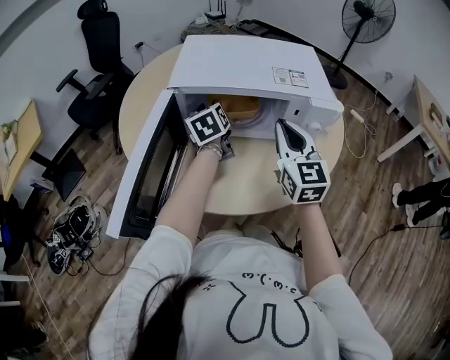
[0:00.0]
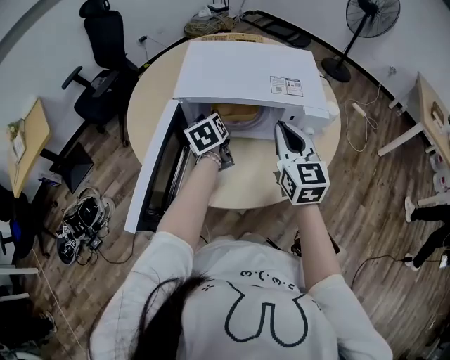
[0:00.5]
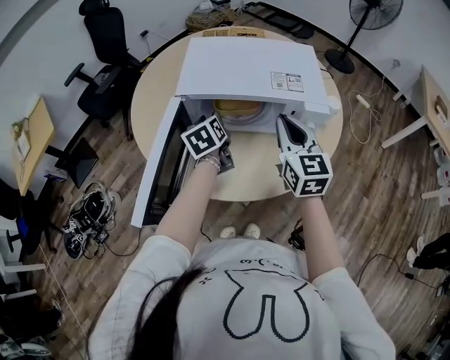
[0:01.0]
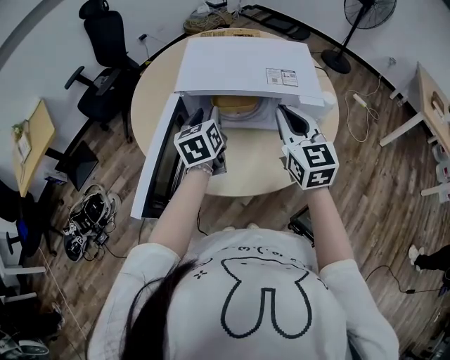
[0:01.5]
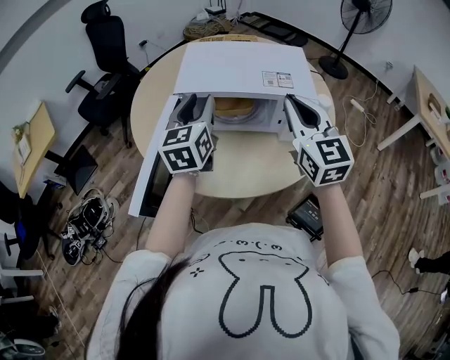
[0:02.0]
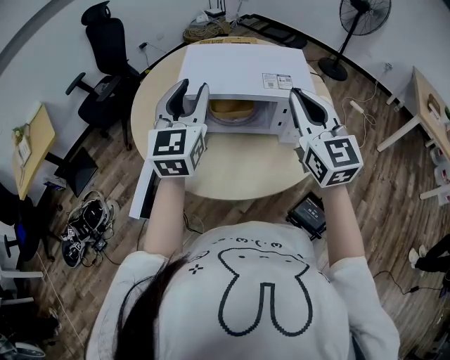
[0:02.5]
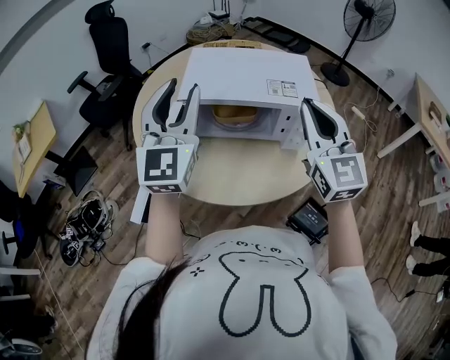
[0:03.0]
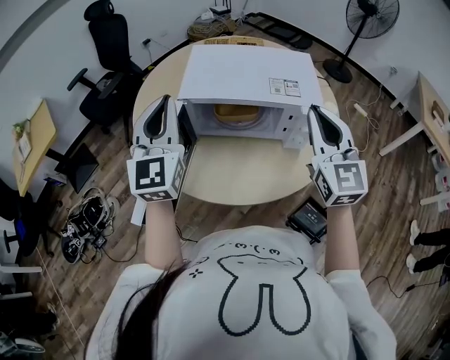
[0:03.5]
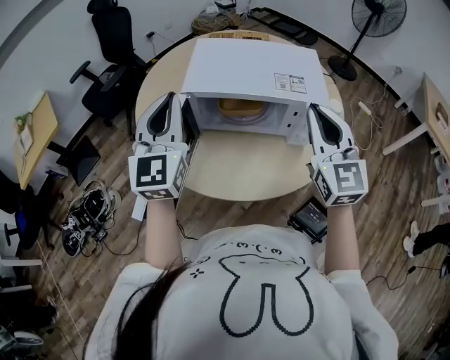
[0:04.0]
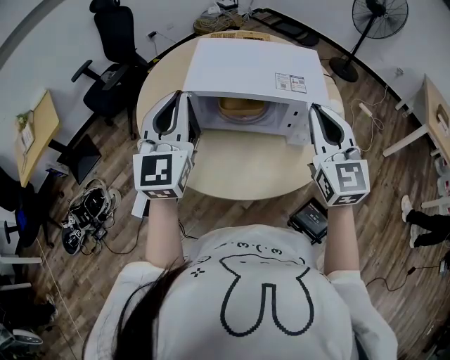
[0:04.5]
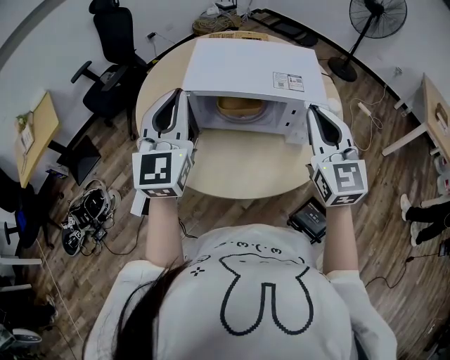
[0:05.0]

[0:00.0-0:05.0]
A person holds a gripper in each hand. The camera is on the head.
0:00.0 to 0:02.5: The right gripper travels upward by approximately 20 cm; the left gripper travels upward and backward by approximately 30 cm, and swivels some 40 degrees.
0:02.5 to 0:05.0: The left gripper shifts by roughly 5 cm, and closes its fingers.

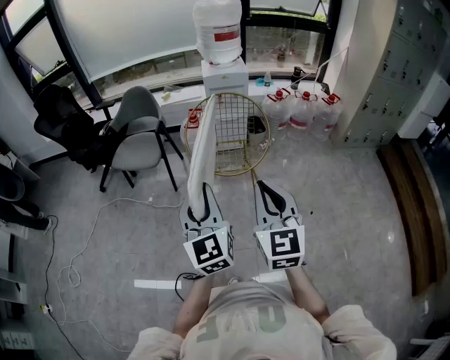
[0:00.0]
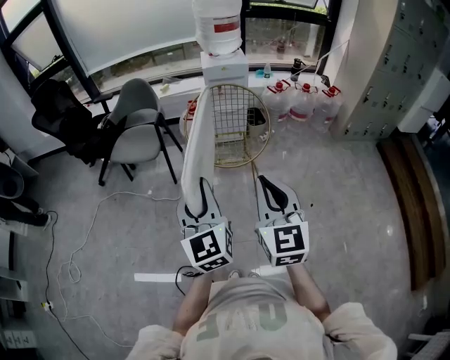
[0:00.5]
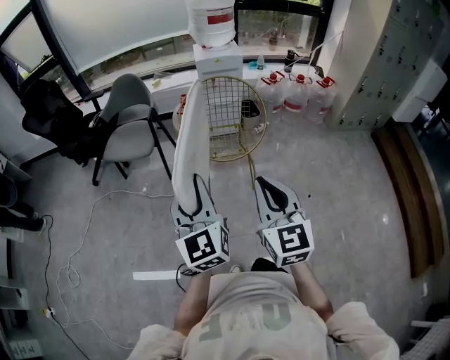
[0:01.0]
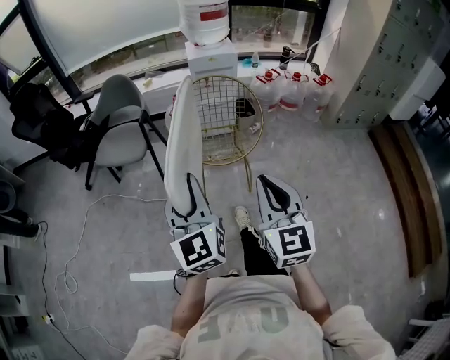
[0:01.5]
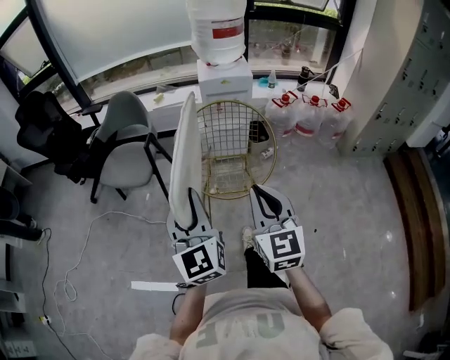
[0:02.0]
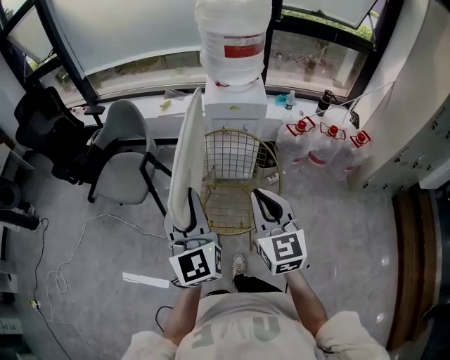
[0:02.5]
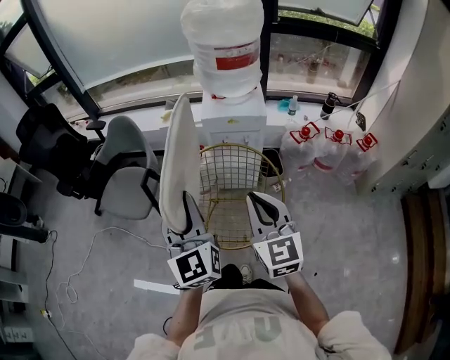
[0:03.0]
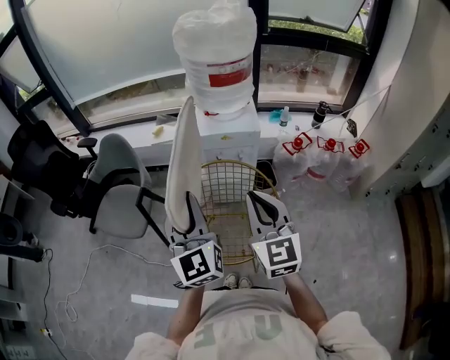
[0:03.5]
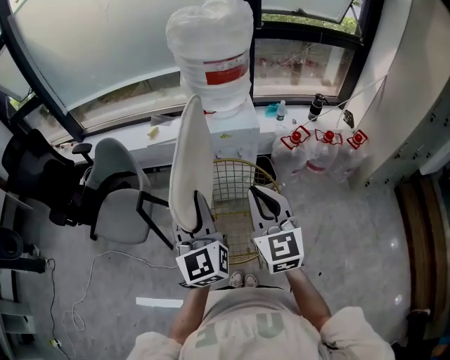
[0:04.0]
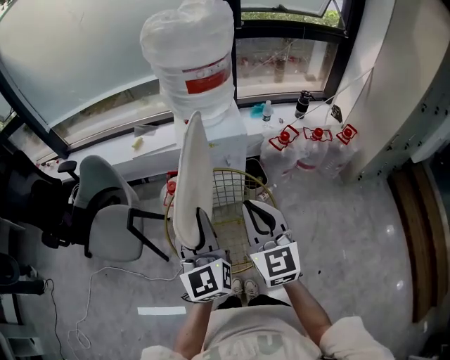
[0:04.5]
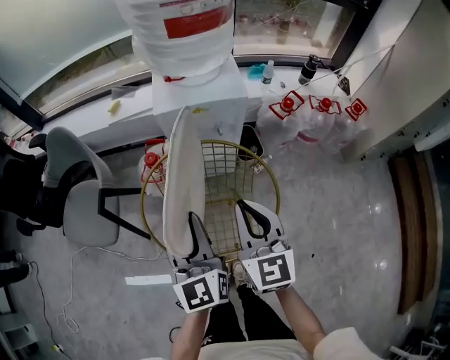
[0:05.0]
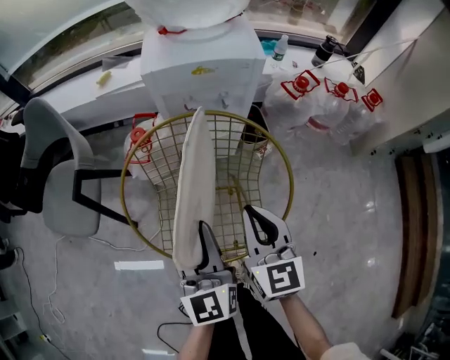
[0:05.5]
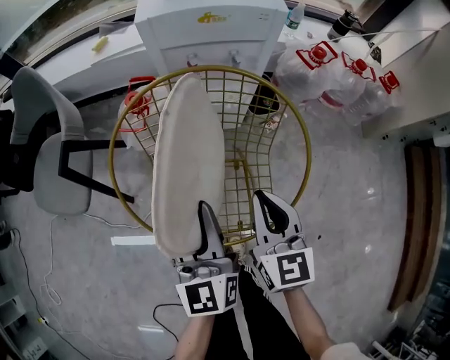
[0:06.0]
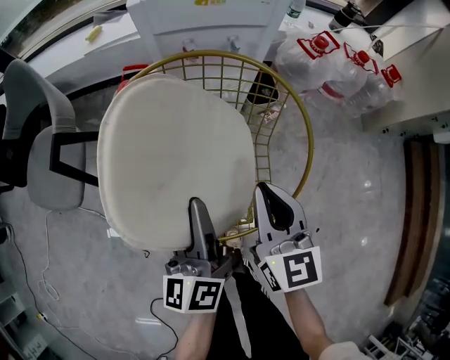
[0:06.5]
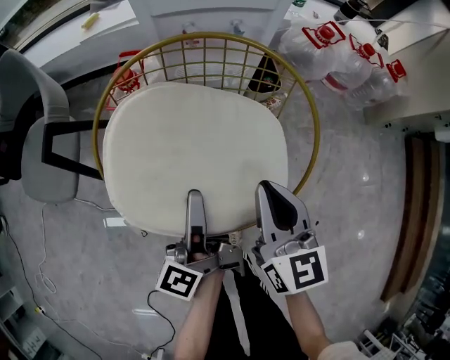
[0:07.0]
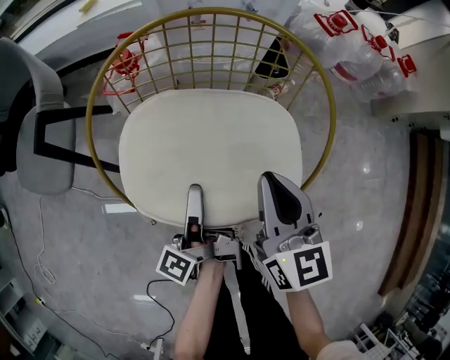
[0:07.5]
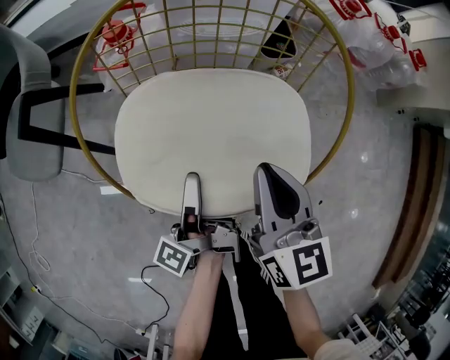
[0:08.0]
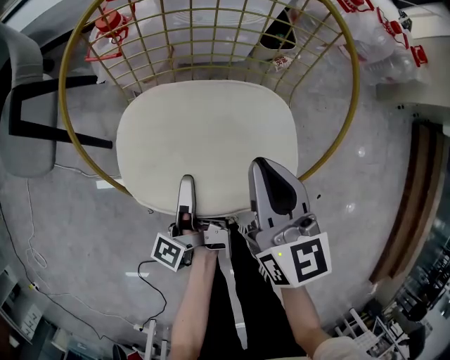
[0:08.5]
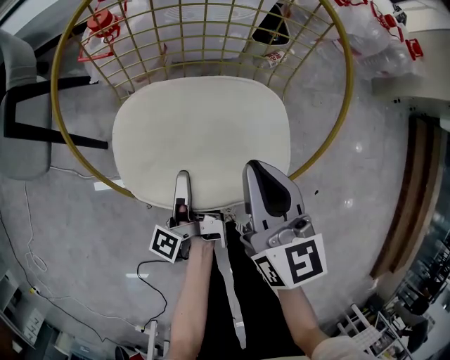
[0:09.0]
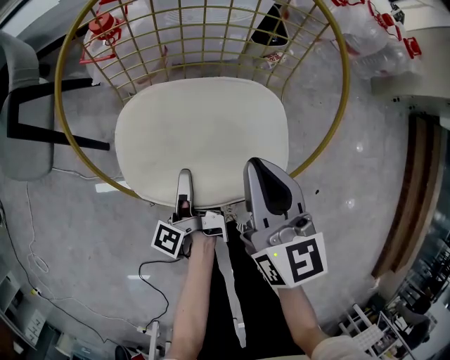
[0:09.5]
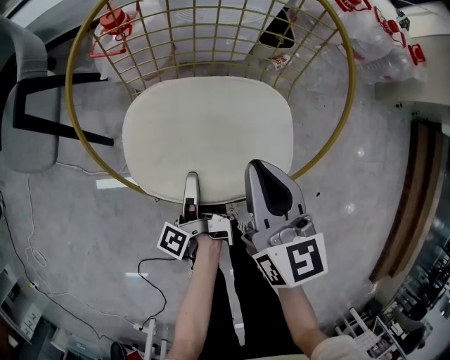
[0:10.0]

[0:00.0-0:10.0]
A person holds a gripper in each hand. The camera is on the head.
0:00.0 to 0:02.0: Both grippers move forward, approximately 20 cm.
0:02.0 to 0:04.0: The right gripper goes about 30 cm forward. The left gripper goes roughly 35 cm forward and to the right.
0:04.0 to 0:06.0: The grippers both shift downward by roughly 35 cm.
0:06.0 to 0:08.0: The left gripper heads downward, covering some 20 cm, and twists some 80 degrees counterclockwise, seen from behind. The right gripper heads downward, covering approximately 5 cm.
0:08.0 to 0:10.0: The left gripper shifts about 10 cm downward and backward.

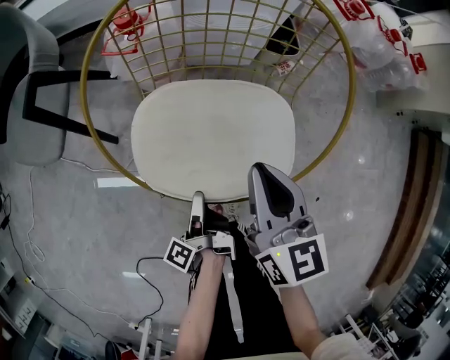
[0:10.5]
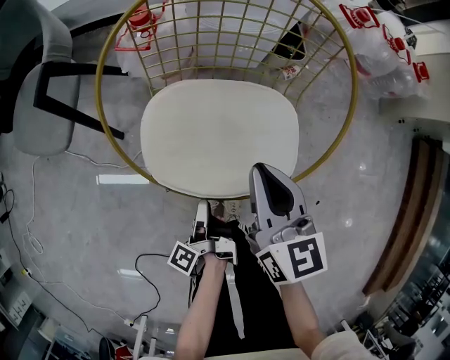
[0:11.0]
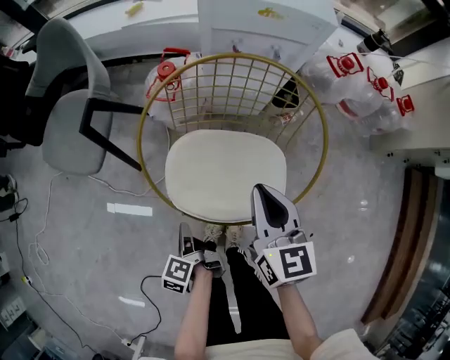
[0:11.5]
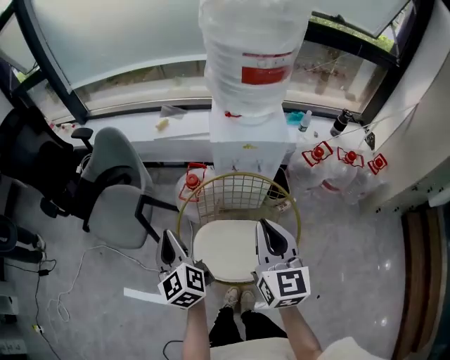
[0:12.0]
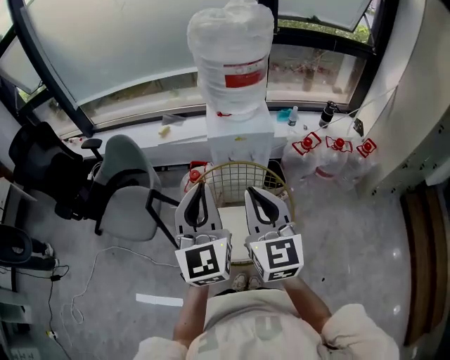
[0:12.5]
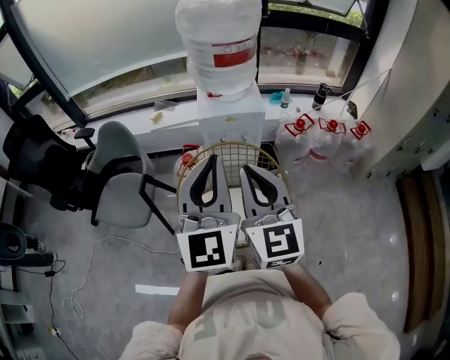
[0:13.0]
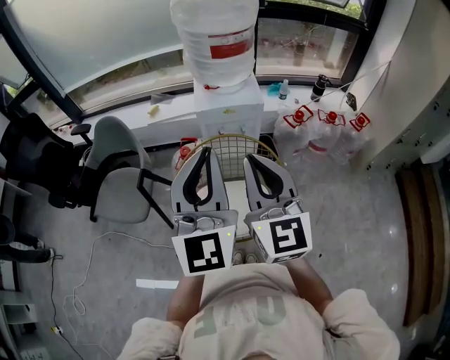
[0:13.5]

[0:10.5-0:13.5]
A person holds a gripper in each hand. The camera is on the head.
0:10.5 to 0:12.0: The right gripper travels upward by roughly 30 cm; the left gripper goes approximately 50 cm upward and forward, twists roughly 80 degrees clockwise, seen from behind, and closes its fingers.
0:12.0 to 0:13.5: The left gripper goes about 30 cm upward and to the right, and swivels approximately 50 degrees. Meanwhile the right gripper heads upward and backward, covering roughly 15 cm.

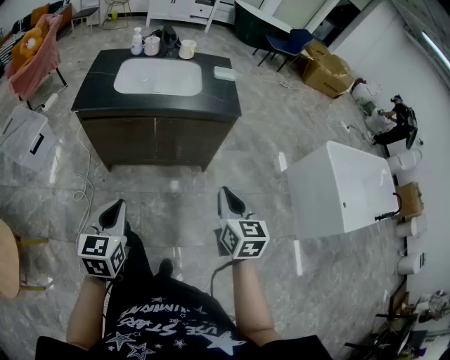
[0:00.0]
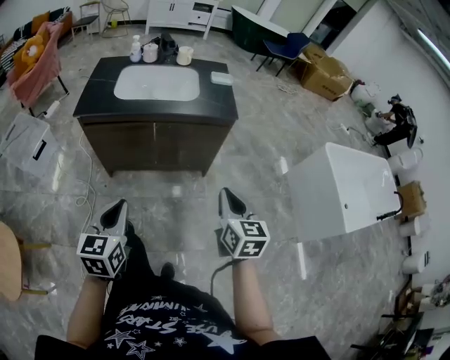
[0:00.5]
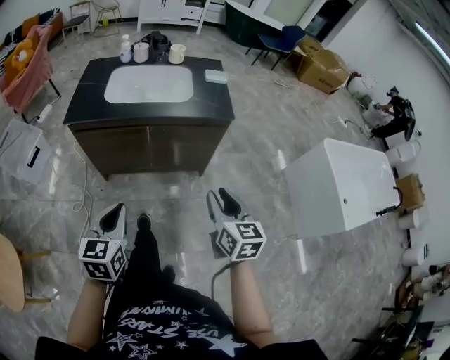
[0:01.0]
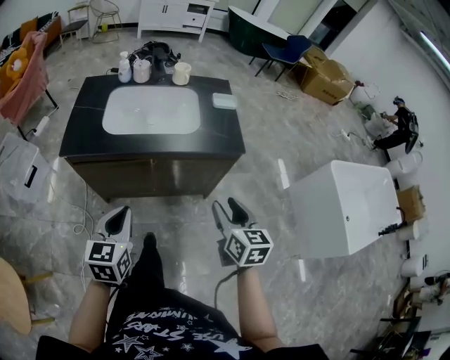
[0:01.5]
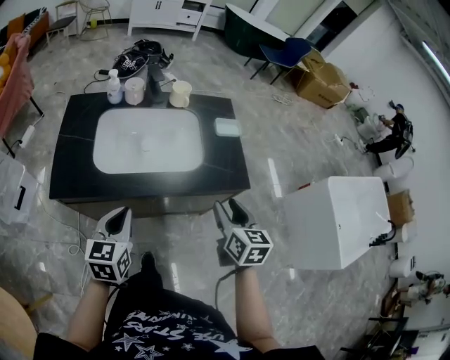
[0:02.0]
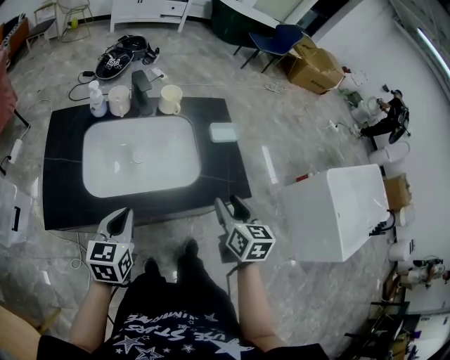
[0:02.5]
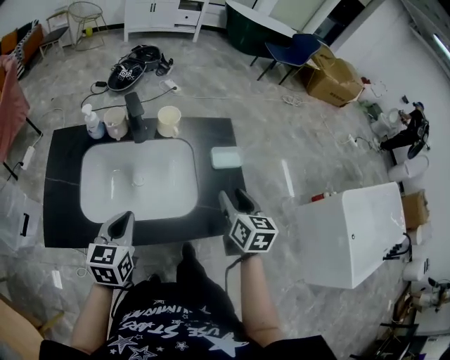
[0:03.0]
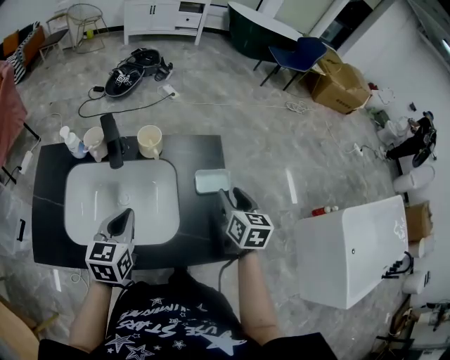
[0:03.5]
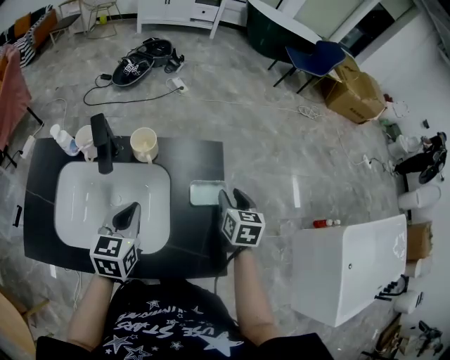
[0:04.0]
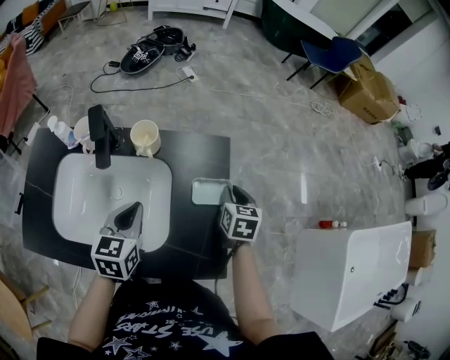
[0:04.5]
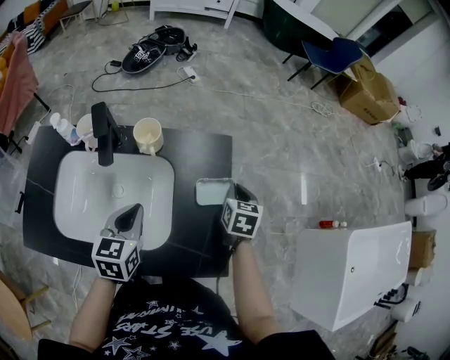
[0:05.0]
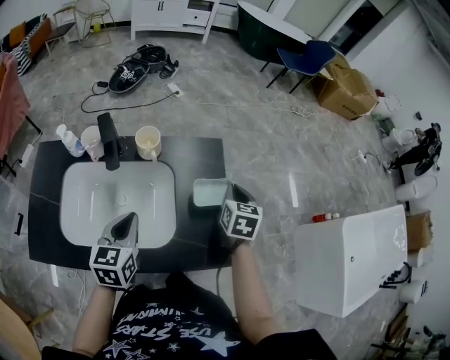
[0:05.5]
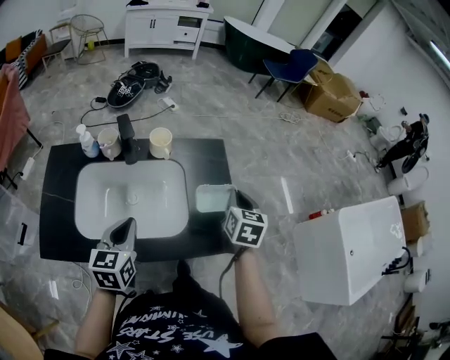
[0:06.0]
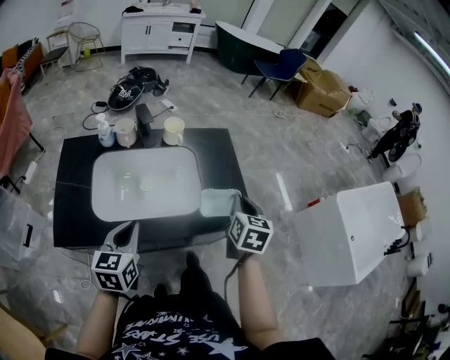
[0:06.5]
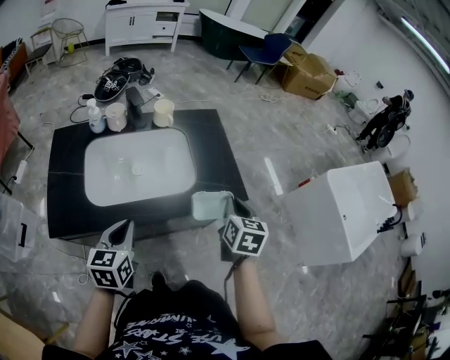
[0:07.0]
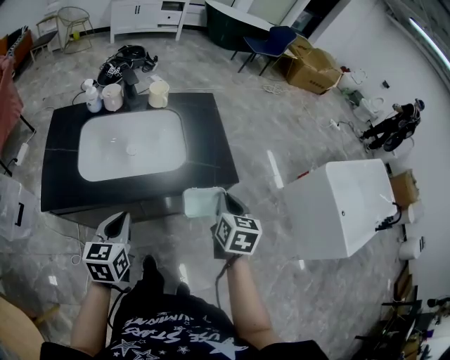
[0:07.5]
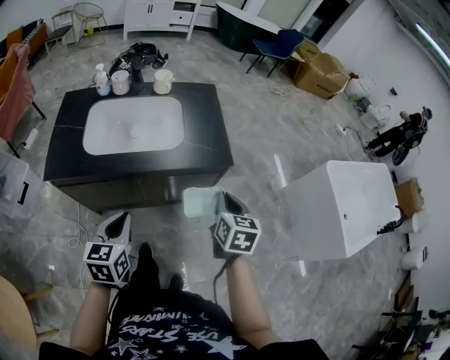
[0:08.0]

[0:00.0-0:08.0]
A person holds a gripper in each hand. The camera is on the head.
0:00.0 to 0:02.0: The two grippers go approximately 35 cm forward. The right gripper opens up.
0:02.0 to 0:04.0: The right gripper is displaced forward by roughly 40 cm. Meanwhile the left gripper shifts approximately 35 cm forward and to the right.
0:04.0 to 0:06.0: The left gripper goes about 15 cm backward and to the left, while the right gripper goes some 15 cm backward and upward, and closes up.
0:06.0 to 0:08.0: The two grippers go some 30 cm backward.
